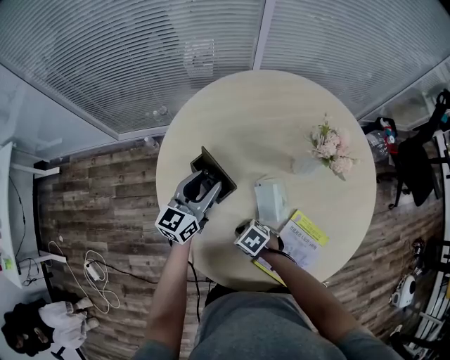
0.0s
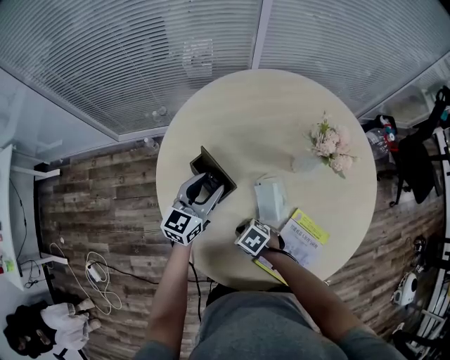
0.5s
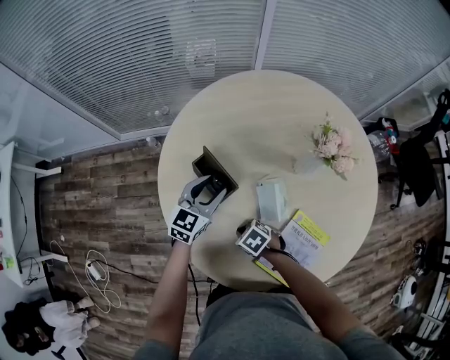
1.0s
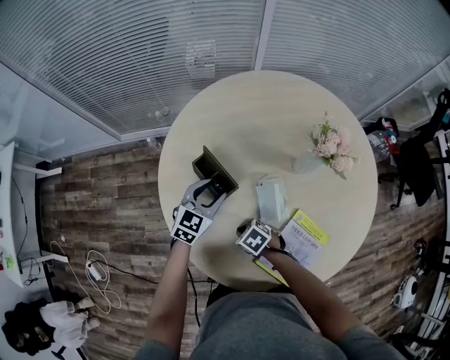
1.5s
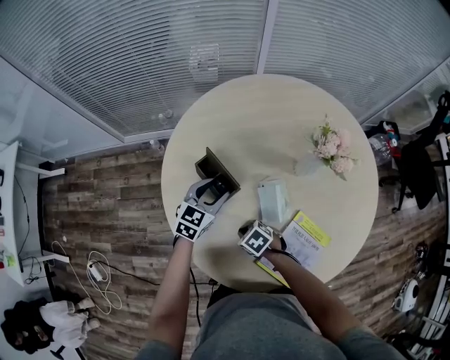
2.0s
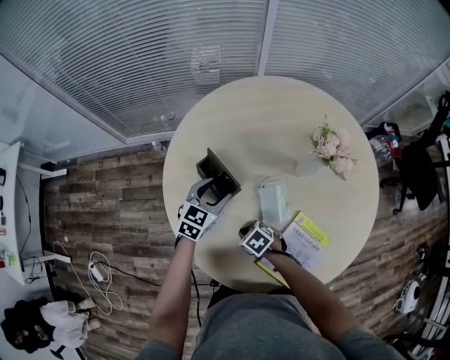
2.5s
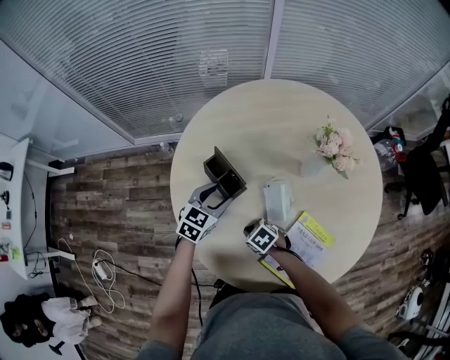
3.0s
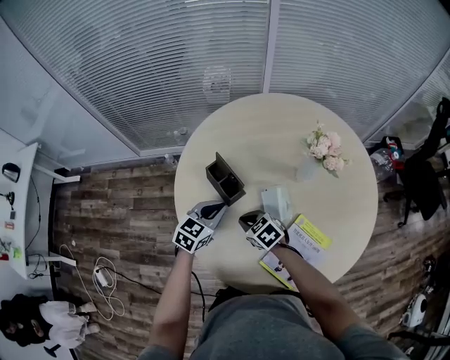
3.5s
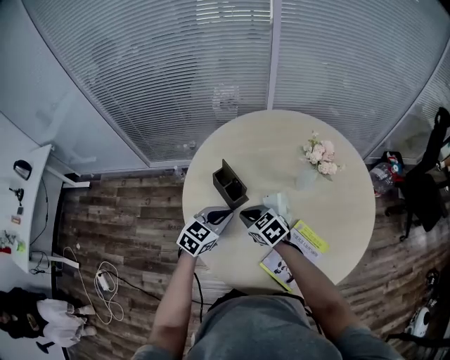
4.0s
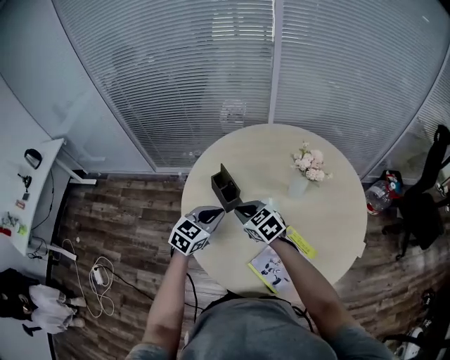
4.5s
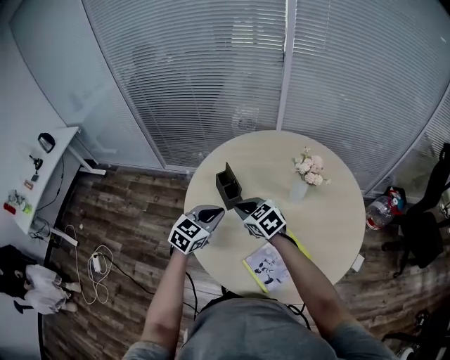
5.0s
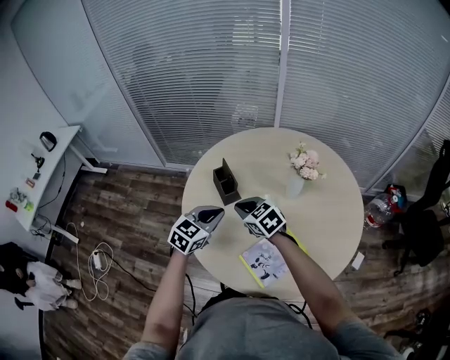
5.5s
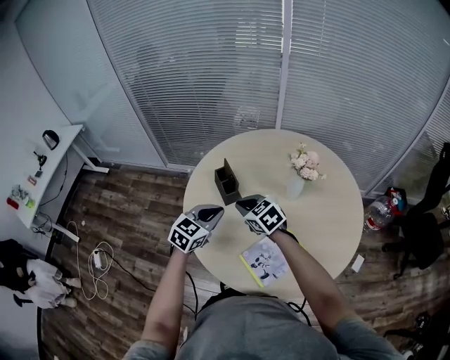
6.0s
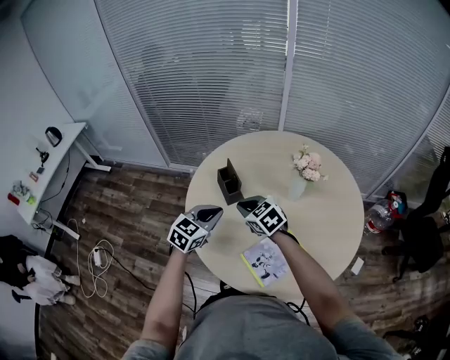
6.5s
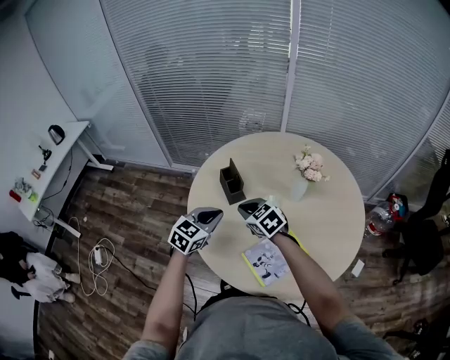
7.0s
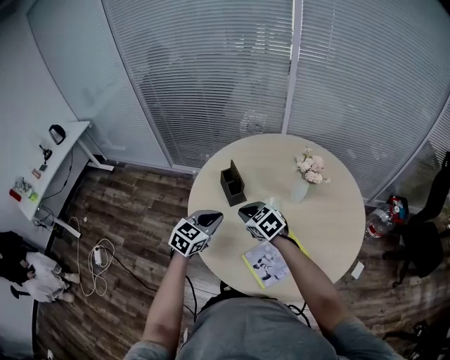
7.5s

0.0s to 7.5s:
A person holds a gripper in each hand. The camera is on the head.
0.0s to 2.0s: The left gripper is displaced downward by about 5 cm, and swivels about 30 degrees.
2.0s to 4.0s: The left gripper ends up about 15 cm from where it was, and closes its fingers; the right gripper shifts some 15 cm upward, and turns by about 30 degrees.
4.0s to 5.5s: The right gripper travels upward and backward by roughly 10 cm, while the left gripper moves backward and upward, approximately 10 cm.
5.5s to 7.5s: There are only small adjustments of the grippers.

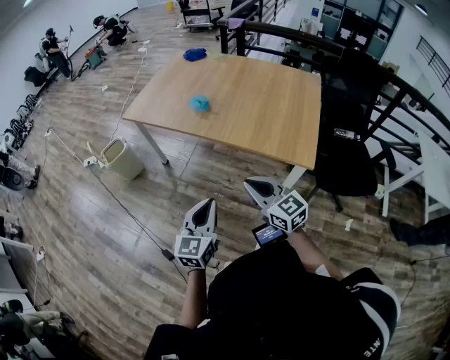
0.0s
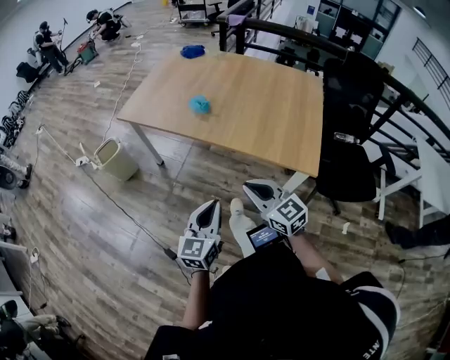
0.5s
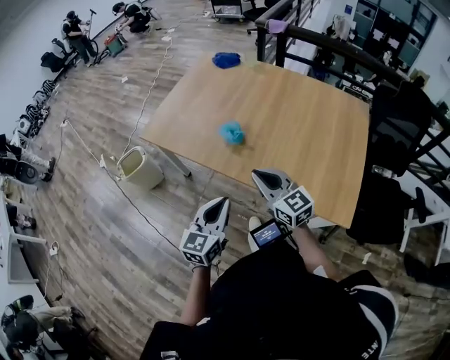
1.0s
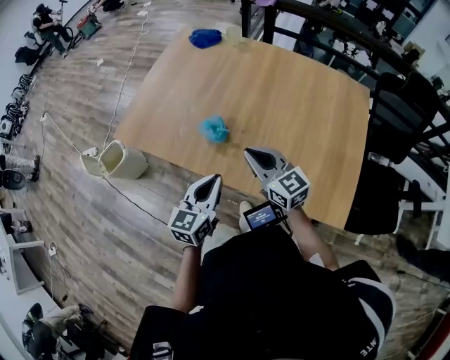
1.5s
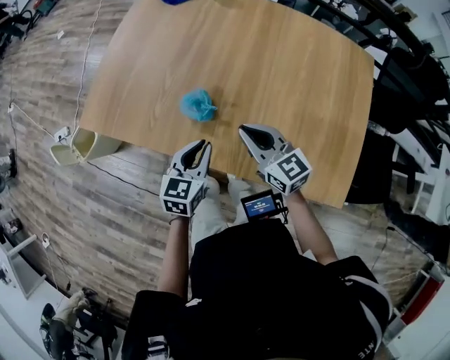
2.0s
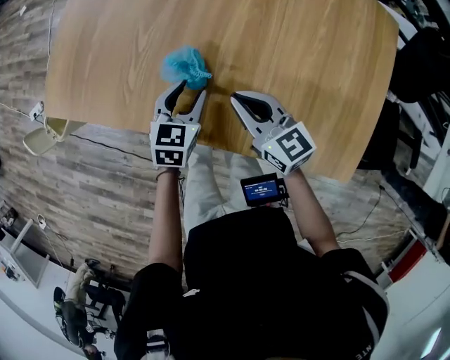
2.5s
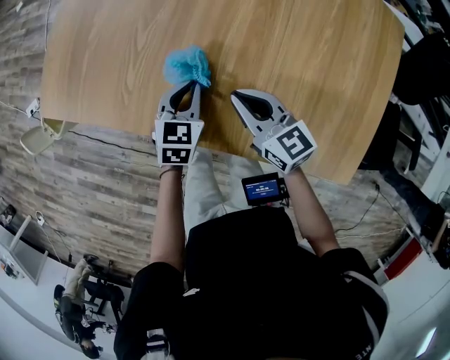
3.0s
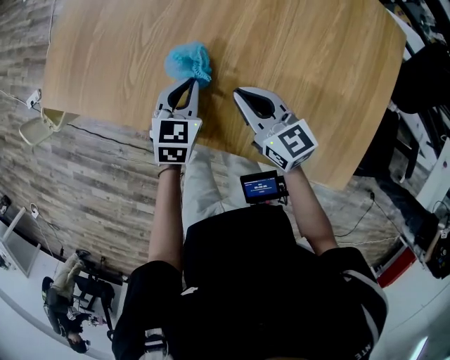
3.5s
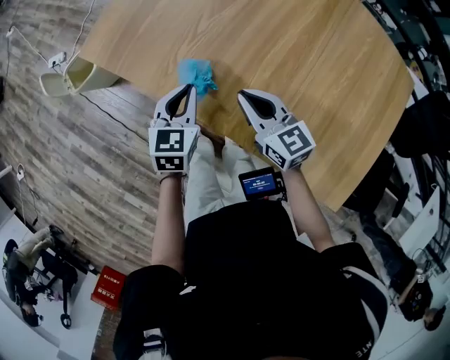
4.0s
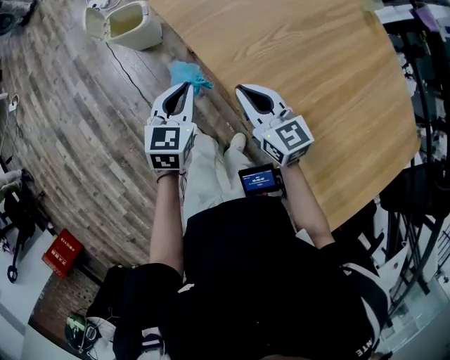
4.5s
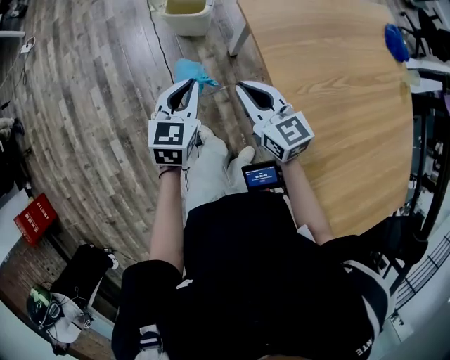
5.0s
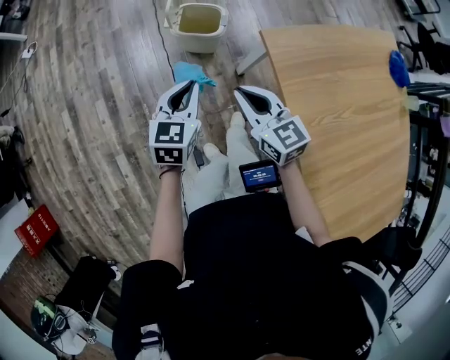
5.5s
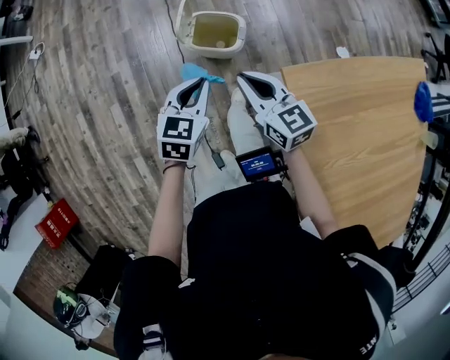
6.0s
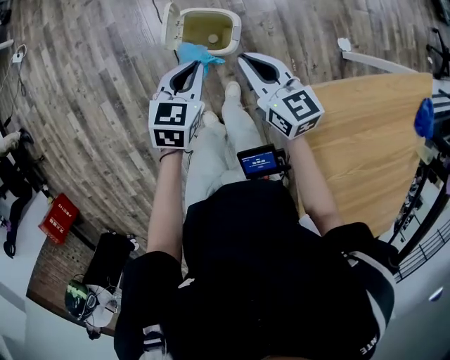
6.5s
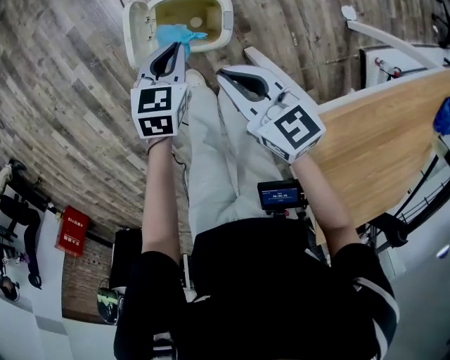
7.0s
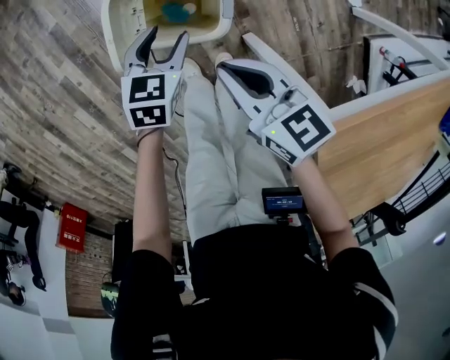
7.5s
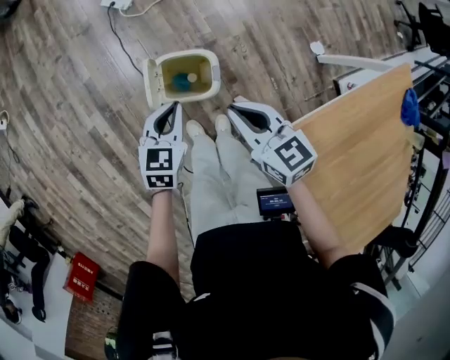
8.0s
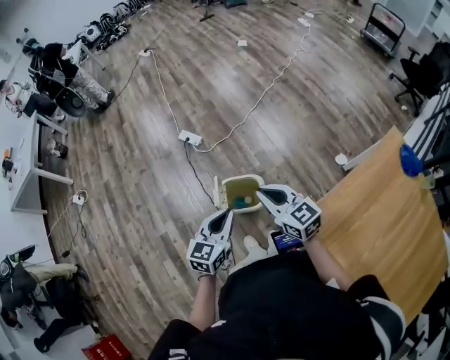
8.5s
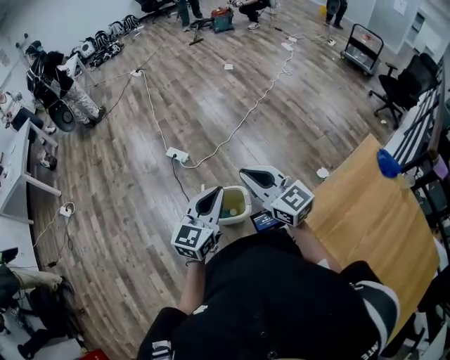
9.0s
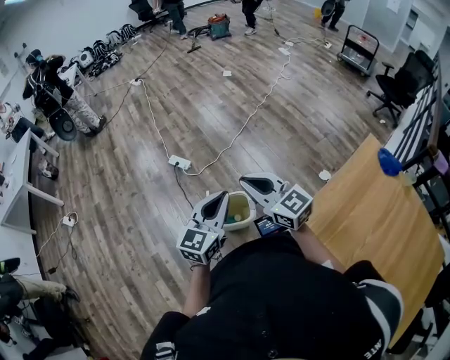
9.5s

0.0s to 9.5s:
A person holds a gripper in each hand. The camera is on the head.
0.0s to 2.0s: Both grippers are carried forward, approximately 50 cm. The left gripper changes its angle by roughly 20 degrees.
2.0s to 4.0s: The right gripper travels to the left by some 10 cm, while the left gripper heads to the left and forward, covering some 10 cm, travels downward and back again, some 10 cm each way, swivels about 20 degrees, and opens, then closes again.
4.0s to 5.5s: The two grippers travel together, about 50 cm. The left gripper swivels approximately 40 degrees, while the right gripper rotates about 40 degrees.
5.5s to 7.5s: Both grippers move forward and downward, roughly 50 cm. The left gripper rotates about 20 degrees, and opens up. Meanwhile the right gripper changes its angle by about 30 degrees.
7.5s to 9.5s: Both grippers travel together upward, approximately 50 cm. The right gripper changes its angle by approximately 40 degrees; the left gripper tilts its fingers some 50 degrees upward, and closes.

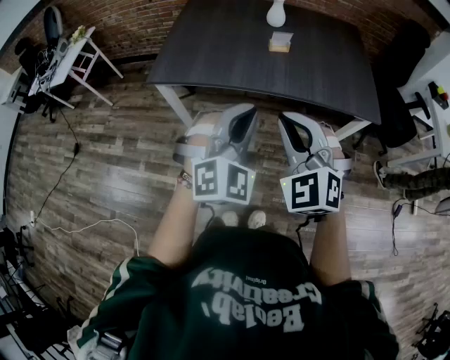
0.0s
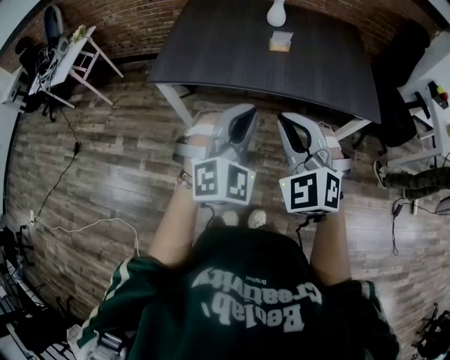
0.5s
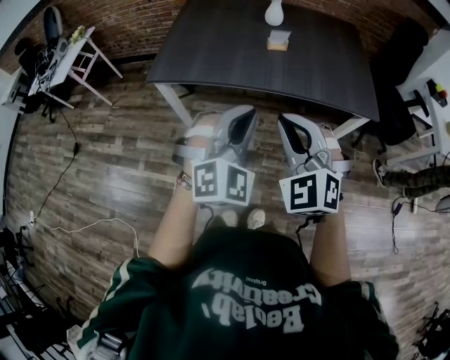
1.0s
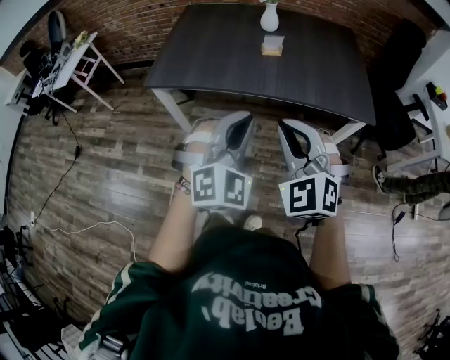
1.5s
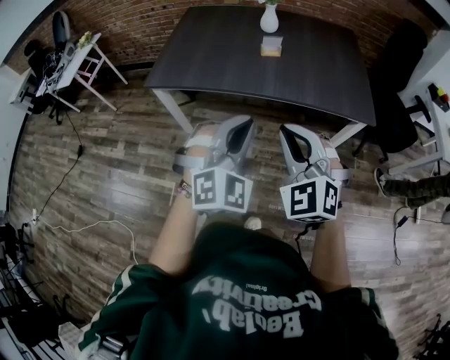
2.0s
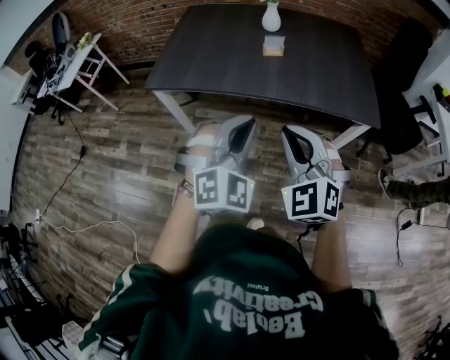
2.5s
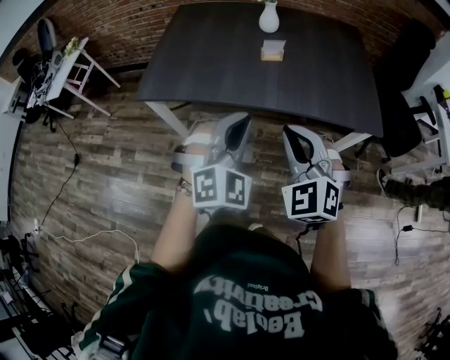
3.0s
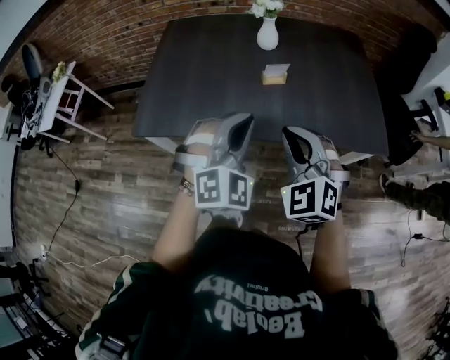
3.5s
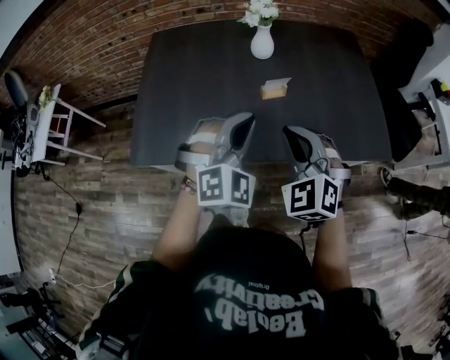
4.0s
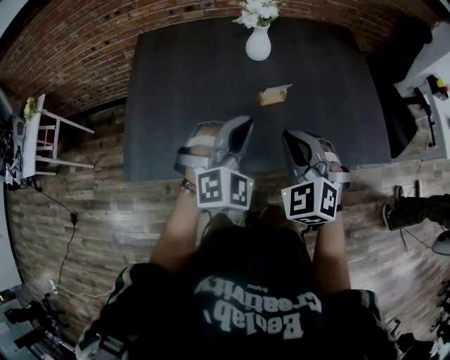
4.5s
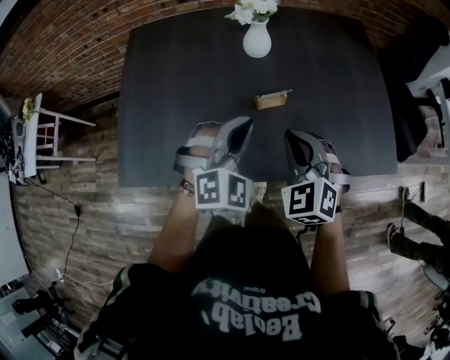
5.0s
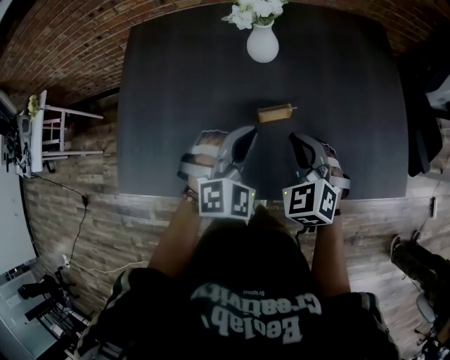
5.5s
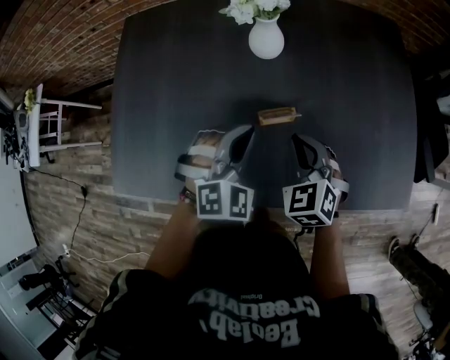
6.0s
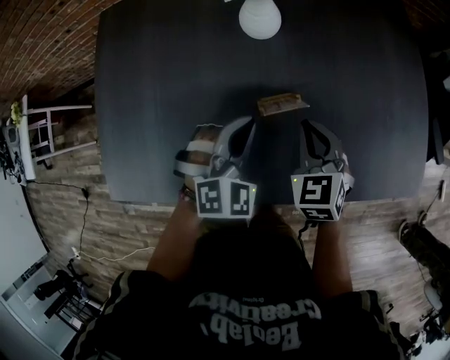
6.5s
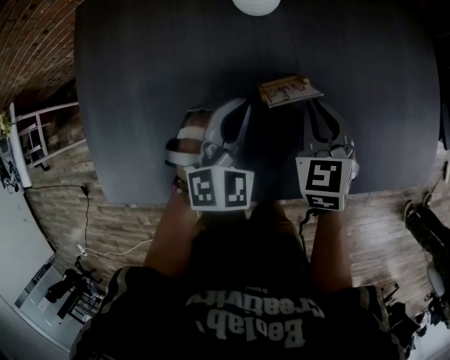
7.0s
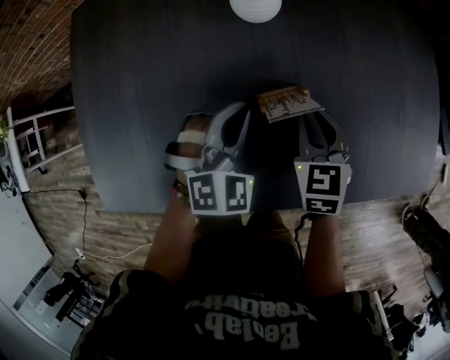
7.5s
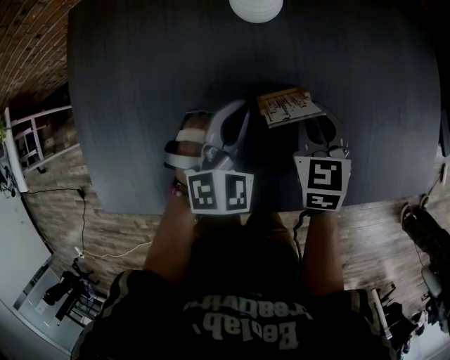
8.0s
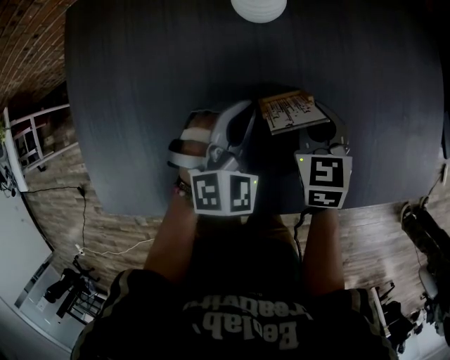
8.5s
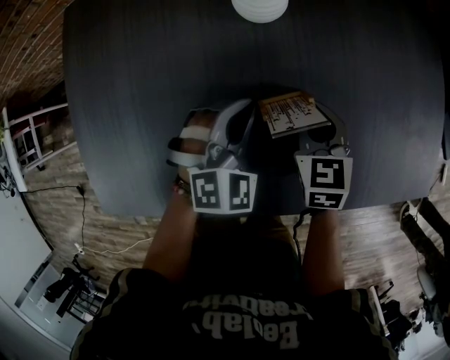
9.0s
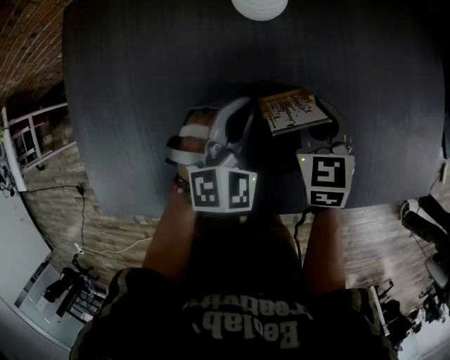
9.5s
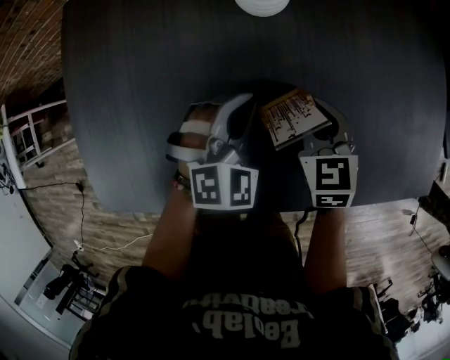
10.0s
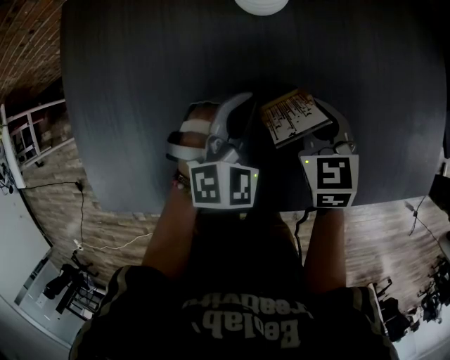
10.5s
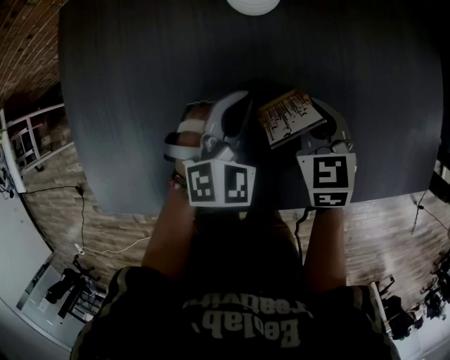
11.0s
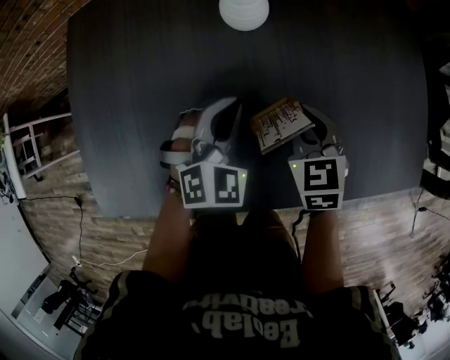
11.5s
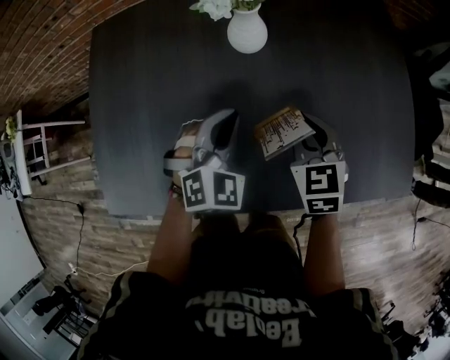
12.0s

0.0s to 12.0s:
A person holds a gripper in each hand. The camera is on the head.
0.0s to 2.0s: Both grippers move to the right, roughly 5 cm.
2.0s to 4.0s: Both grippers travel together forward, some 40 cm.
4.0s to 6.0s: Both grippers travel together forward and downward, approximately 30 cm. The right gripper swivels some 20 degrees.
6.0s to 8.0s: Both grippers move downward and forward, some 15 cm. The right gripper swivels about 30 degrees.
8.0s to 10.0s: The grippers stay close to where they were, moving slightly.
10.0s to 12.0s: Both grippers move upward, roughly 10 cm.
